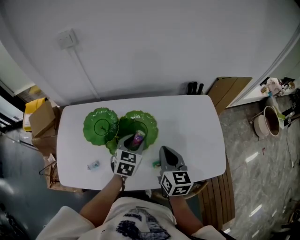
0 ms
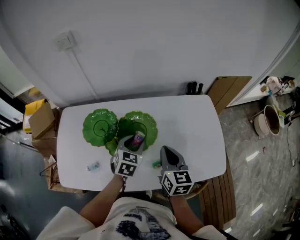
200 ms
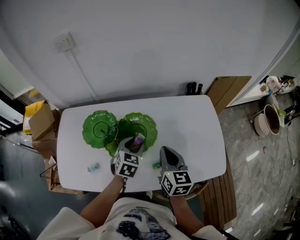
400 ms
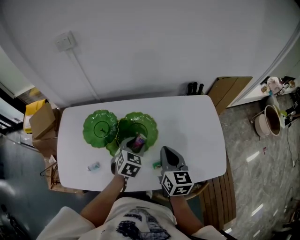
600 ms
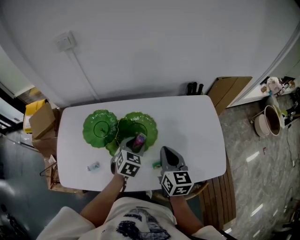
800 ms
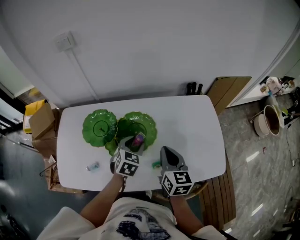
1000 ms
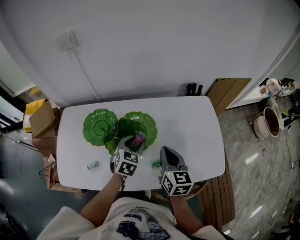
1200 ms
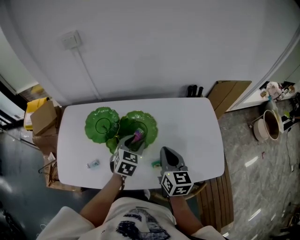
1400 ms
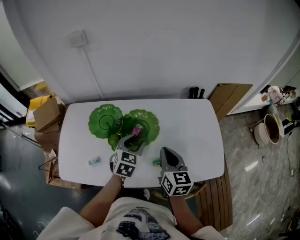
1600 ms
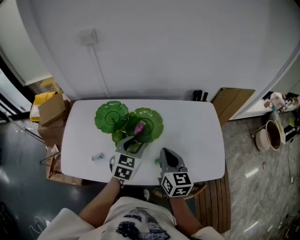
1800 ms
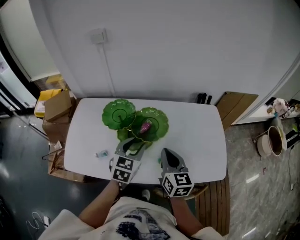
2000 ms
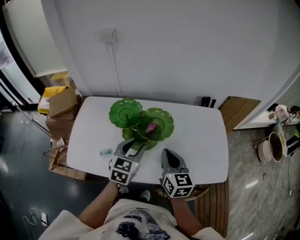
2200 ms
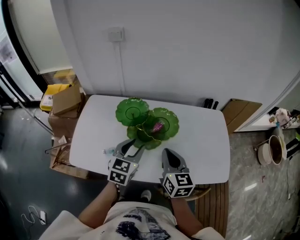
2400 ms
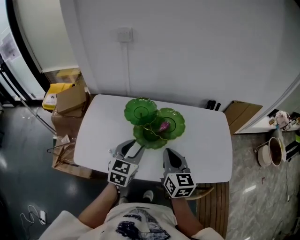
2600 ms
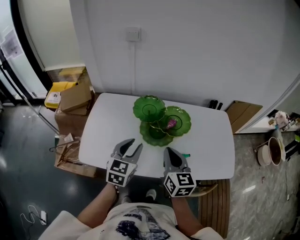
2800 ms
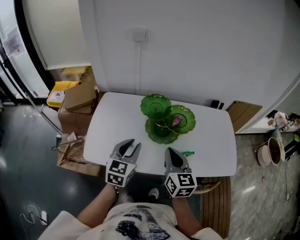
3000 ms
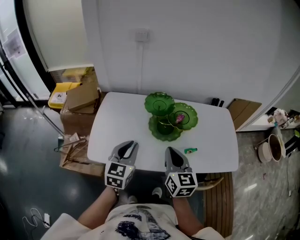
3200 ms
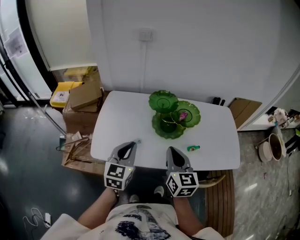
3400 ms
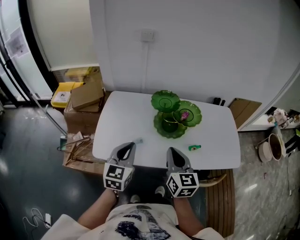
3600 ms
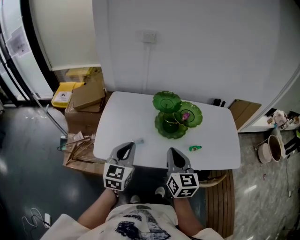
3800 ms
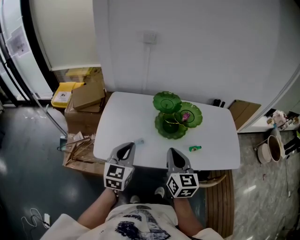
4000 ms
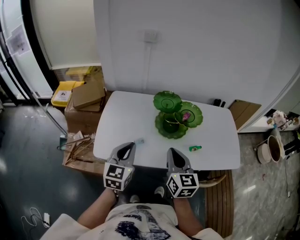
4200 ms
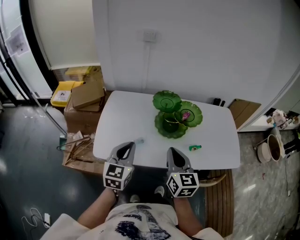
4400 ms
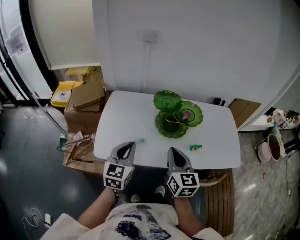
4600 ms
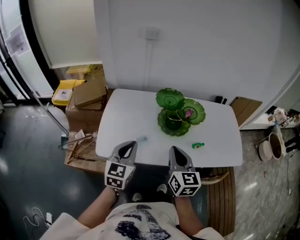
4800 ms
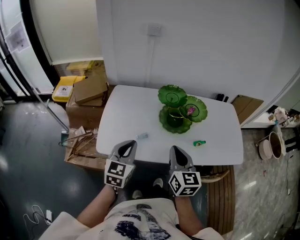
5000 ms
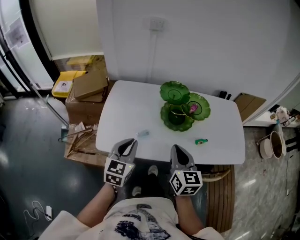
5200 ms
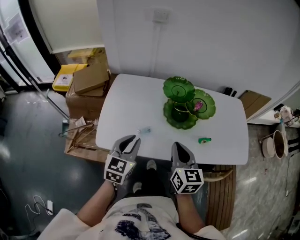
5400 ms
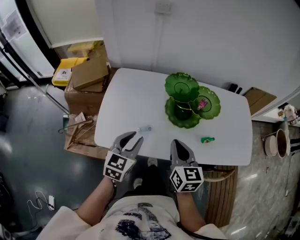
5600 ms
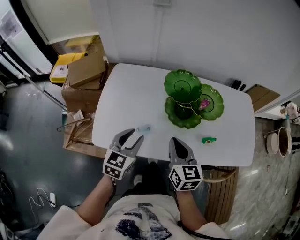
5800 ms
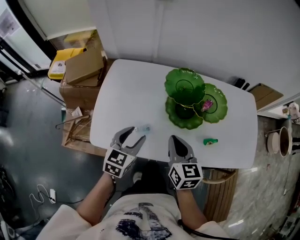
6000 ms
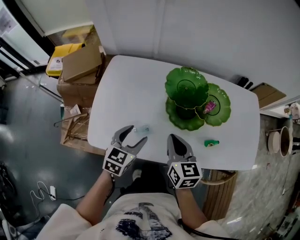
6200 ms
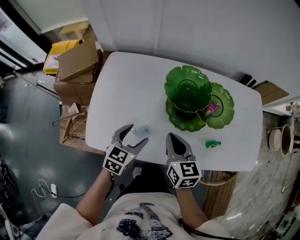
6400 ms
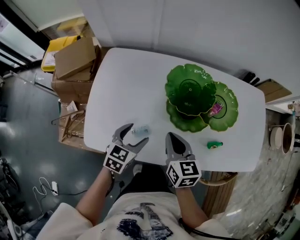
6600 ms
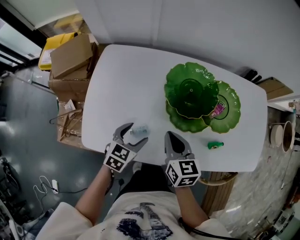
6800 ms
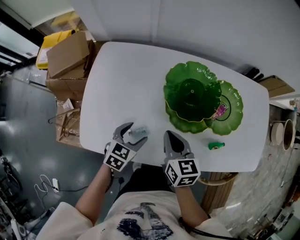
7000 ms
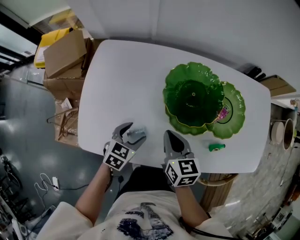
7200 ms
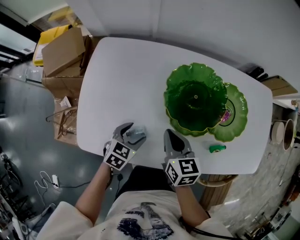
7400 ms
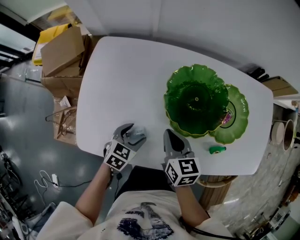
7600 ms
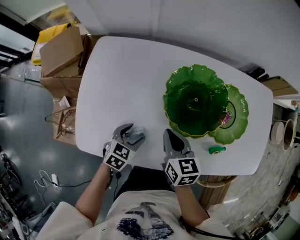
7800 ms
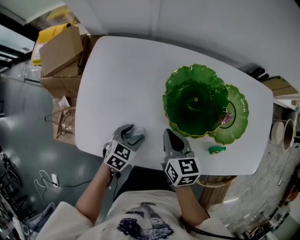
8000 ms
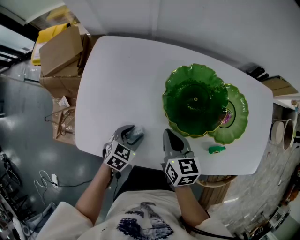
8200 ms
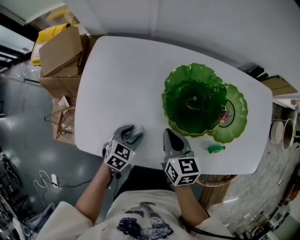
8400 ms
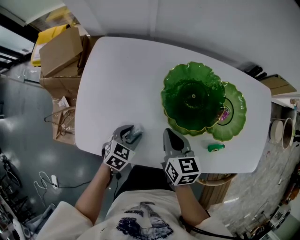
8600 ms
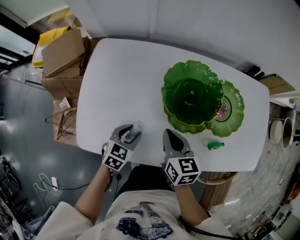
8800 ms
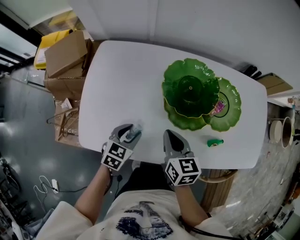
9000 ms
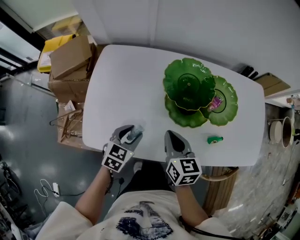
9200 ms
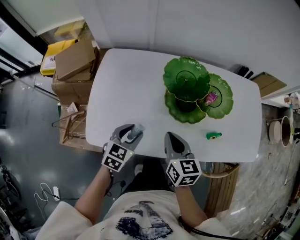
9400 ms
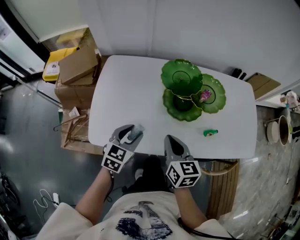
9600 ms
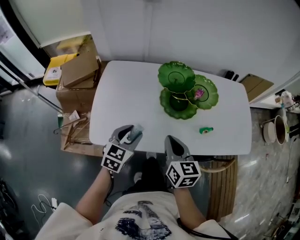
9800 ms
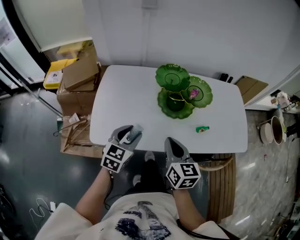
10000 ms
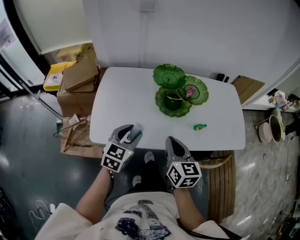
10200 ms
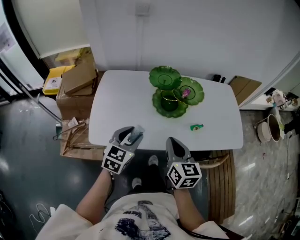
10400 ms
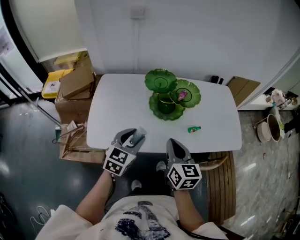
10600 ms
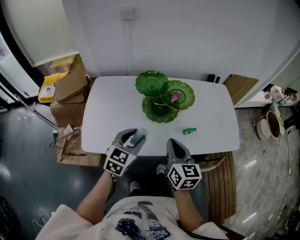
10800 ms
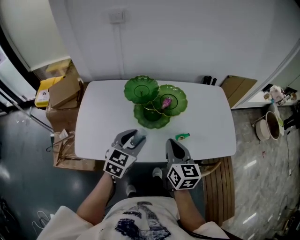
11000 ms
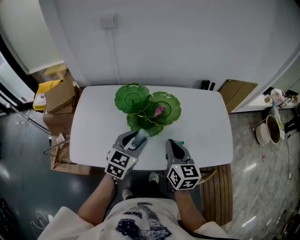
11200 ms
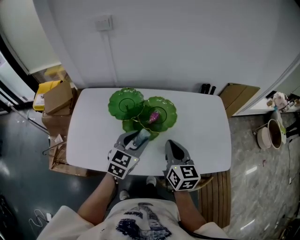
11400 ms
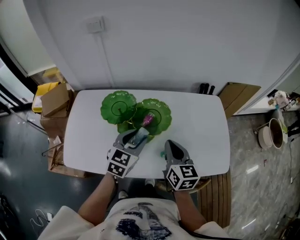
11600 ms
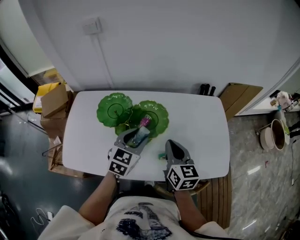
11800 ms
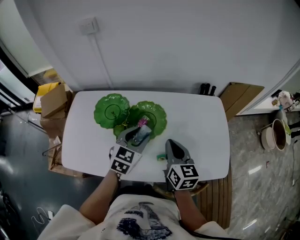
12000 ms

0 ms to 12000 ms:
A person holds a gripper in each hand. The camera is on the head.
0 ms to 1600 ms: The grippers move only a little.
1600 ms to 3000 ms: Both grippers move to the left and backward, about 25 cm.
3000 ms to 4400 ms: Both grippers move to the left and backward, about 10 cm.
4400 ms to 6000 ms: The two grippers go about 15 cm downward and forward. The left gripper opens up.
6000 ms to 7600 ms: The right gripper travels downward and forward by roughly 15 cm; the left gripper shifts roughly 20 cm downward, turns by roughly 30 degrees, and opens its fingers.
7600 ms to 9000 ms: The left gripper closes its fingers.
9000 ms to 10400 ms: The right gripper travels backward and upward by about 25 cm, while the left gripper moves upward and backward, approximately 25 cm, and rotates roughly 20 degrees.
10400 ms to 12000 ms: The left gripper heads to the right and forward, covering about 35 cm; the right gripper goes roughly 30 cm forward and to the right.

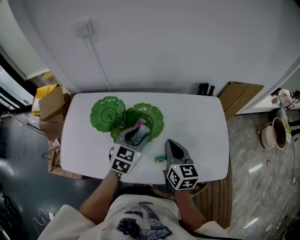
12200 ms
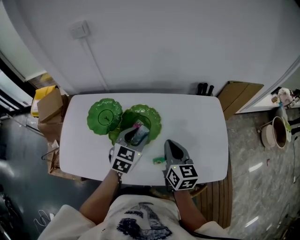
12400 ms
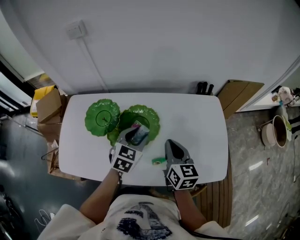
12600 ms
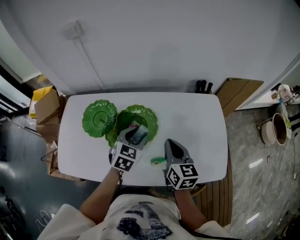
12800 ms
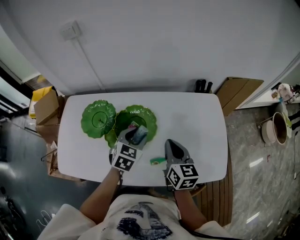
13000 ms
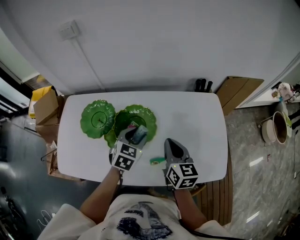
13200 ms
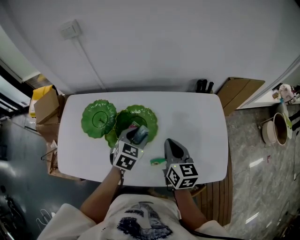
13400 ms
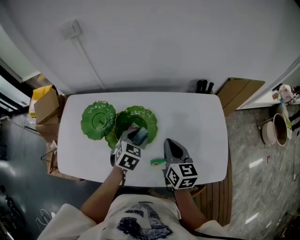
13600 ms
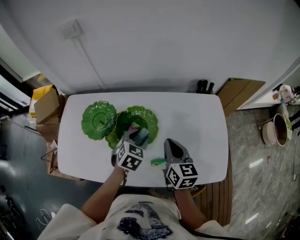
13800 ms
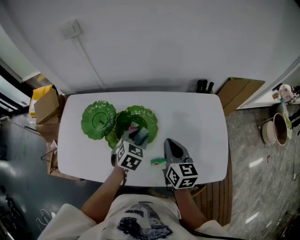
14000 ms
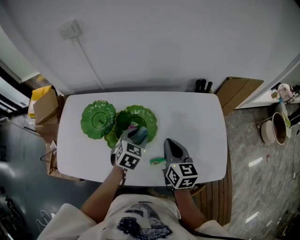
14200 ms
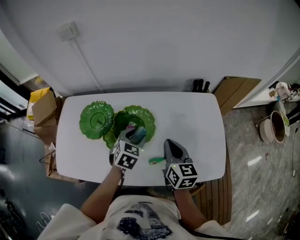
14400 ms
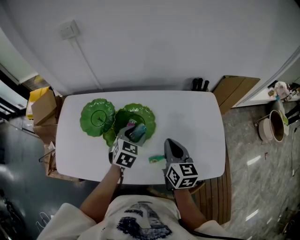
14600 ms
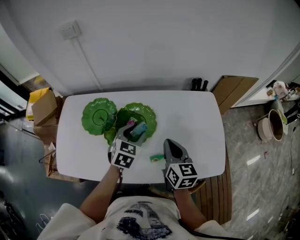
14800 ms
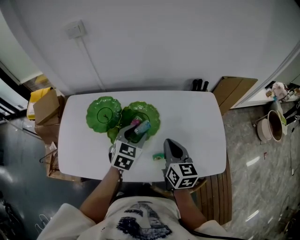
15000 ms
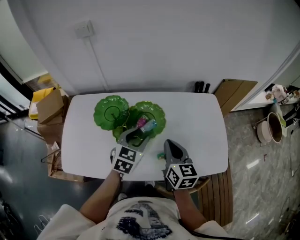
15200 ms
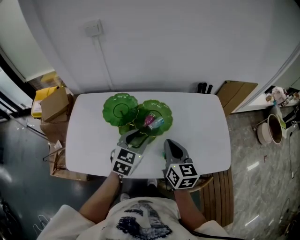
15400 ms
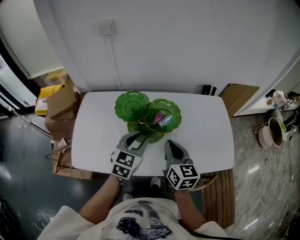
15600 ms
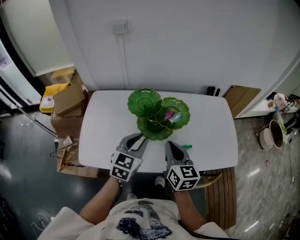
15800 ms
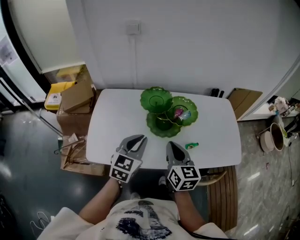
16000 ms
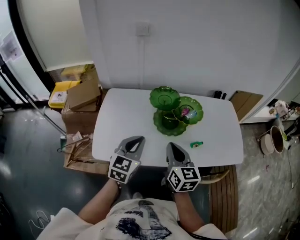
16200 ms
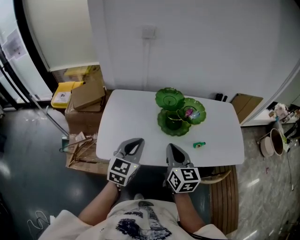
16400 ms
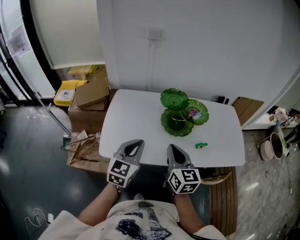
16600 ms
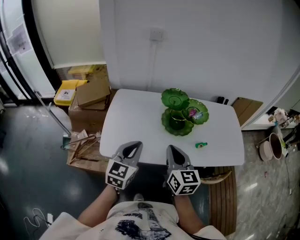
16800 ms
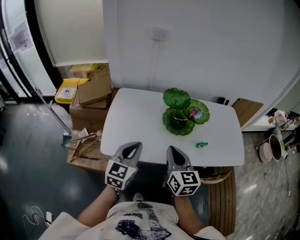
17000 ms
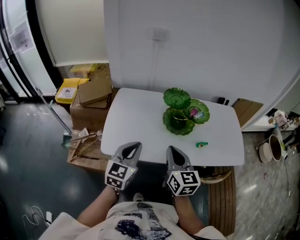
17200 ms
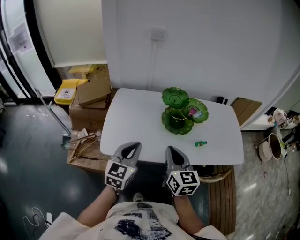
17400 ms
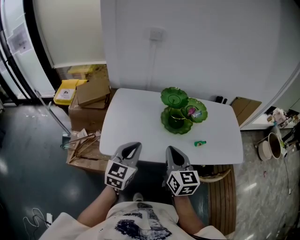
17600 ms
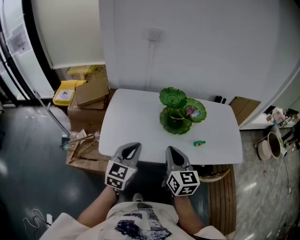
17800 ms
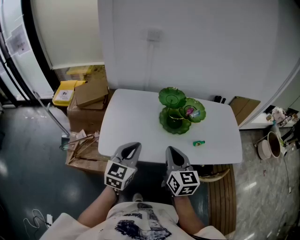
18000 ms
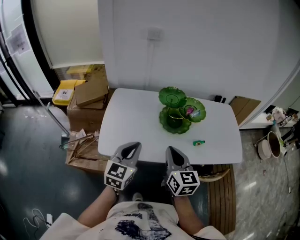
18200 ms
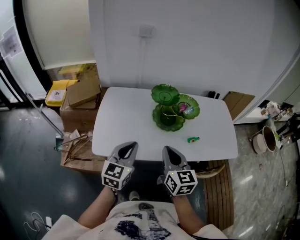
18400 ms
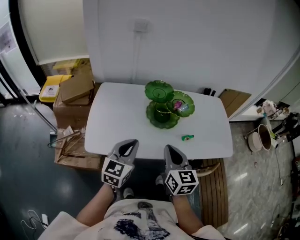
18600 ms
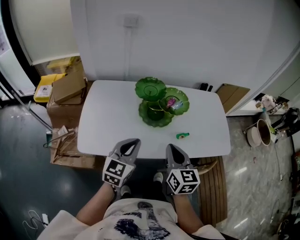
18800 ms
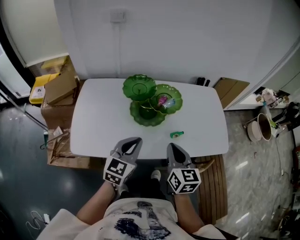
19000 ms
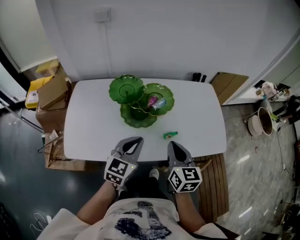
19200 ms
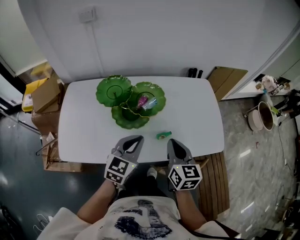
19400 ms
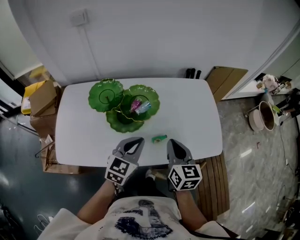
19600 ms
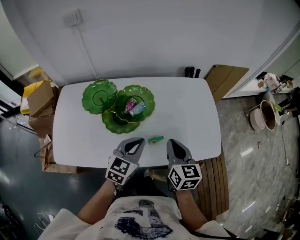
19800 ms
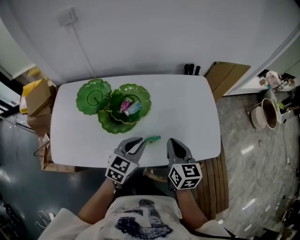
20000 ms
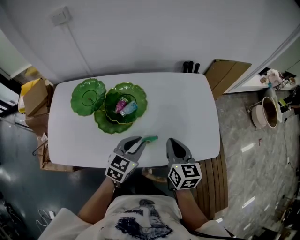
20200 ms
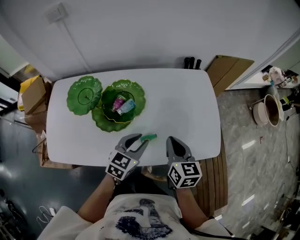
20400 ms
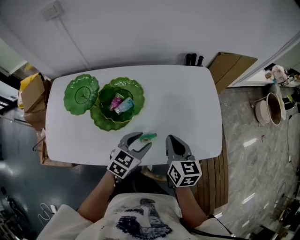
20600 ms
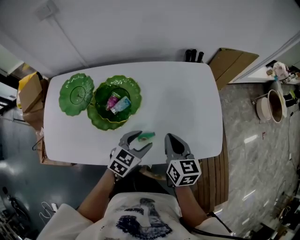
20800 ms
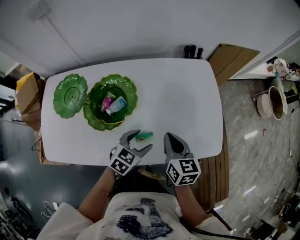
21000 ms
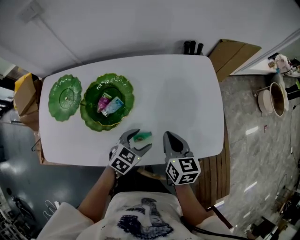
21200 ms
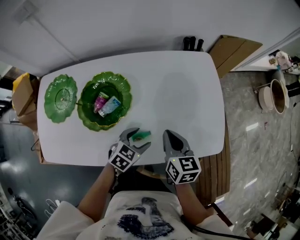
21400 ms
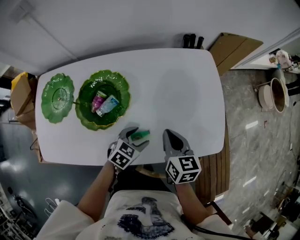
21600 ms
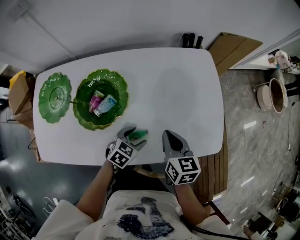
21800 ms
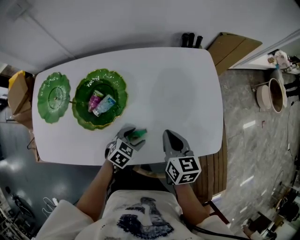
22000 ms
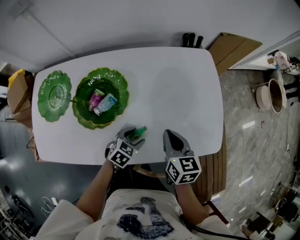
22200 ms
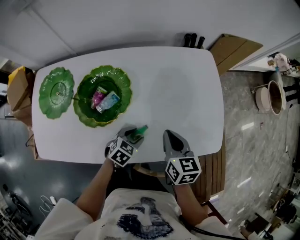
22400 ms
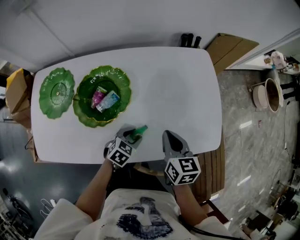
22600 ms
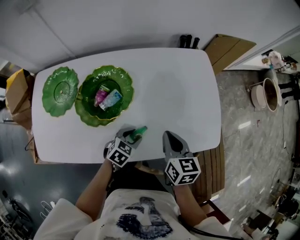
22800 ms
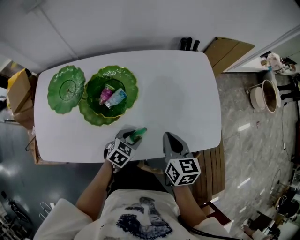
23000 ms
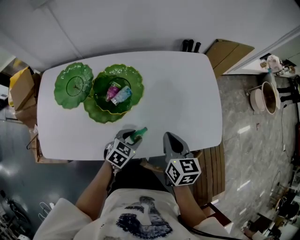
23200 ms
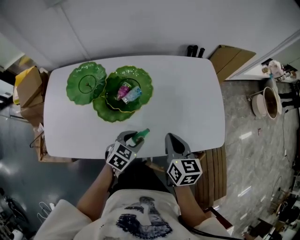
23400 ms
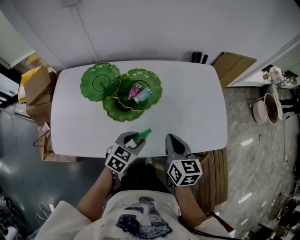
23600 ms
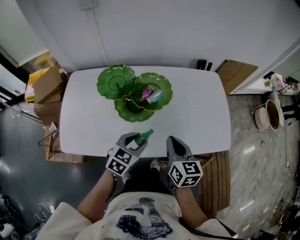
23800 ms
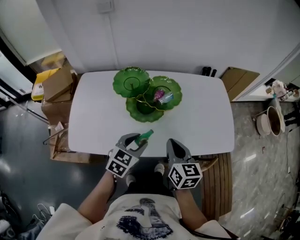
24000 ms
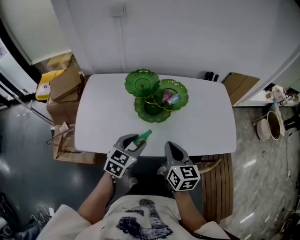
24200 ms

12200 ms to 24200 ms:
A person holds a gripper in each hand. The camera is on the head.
12200 ms to 13800 ms: The left gripper is displaced downward by roughly 5 cm.
13800 ms to 15200 ms: The left gripper travels upward and backward by about 10 cm. Meanwhile the right gripper travels backward by about 5 cm.
15200 ms to 16600 ms: The two grippers go approximately 35 cm to the left and backward. The left gripper closes.
16600 ms to 18200 ms: The grippers make only small movements.
18200 ms to 19800 ms: The grippers both shift to the right and forward by about 35 cm. The left gripper rotates roughly 20 degrees.
19800 ms to 21200 ms: The right gripper moves downward, forward and to the right, roughly 15 cm; the left gripper moves downward and to the right, approximately 20 cm, rotates roughly 20 degrees, and opens up.
21200 ms to 22600 ms: The left gripper heads downward, covering roughly 5 cm, and closes its fingers.
22600 ms to 24200 ms: The left gripper goes approximately 35 cm upward, to the left and backward, and turns by some 30 degrees, while the right gripper heads backward, to the left and upward, covering some 30 cm.
